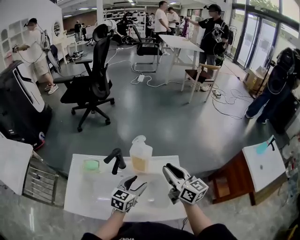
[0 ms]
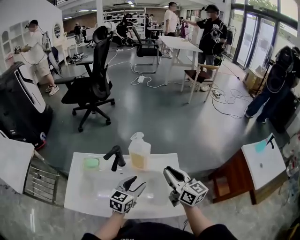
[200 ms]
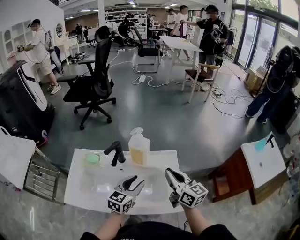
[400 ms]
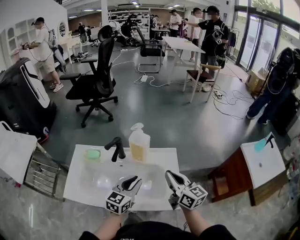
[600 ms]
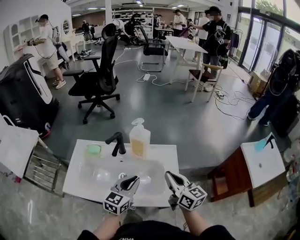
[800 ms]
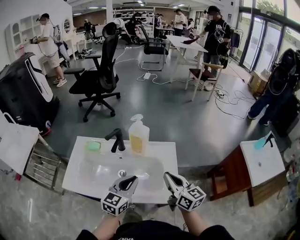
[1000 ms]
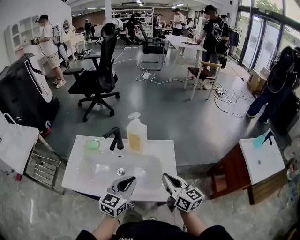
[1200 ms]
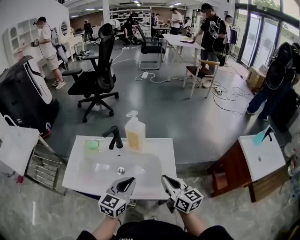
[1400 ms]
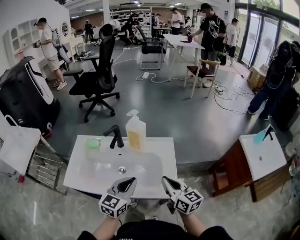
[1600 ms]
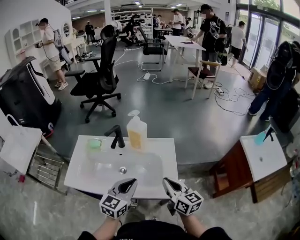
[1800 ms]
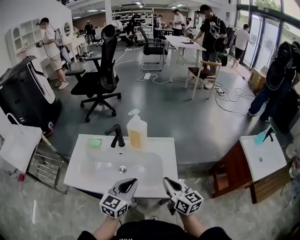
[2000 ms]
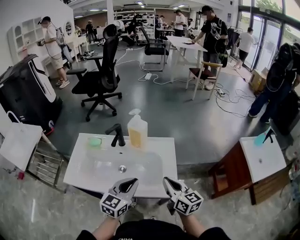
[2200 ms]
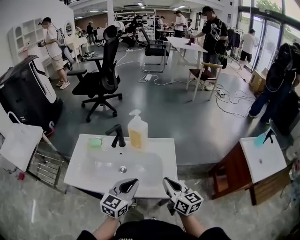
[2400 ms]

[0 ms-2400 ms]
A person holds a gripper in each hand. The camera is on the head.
0 ms to 1200 ms: The left gripper heads backward and upward, covering about 15 cm, and closes its fingers, while the right gripper heads backward, covering about 15 cm, and closes.
1200 ms to 2400 ms: There are only small adjustments of the grippers.

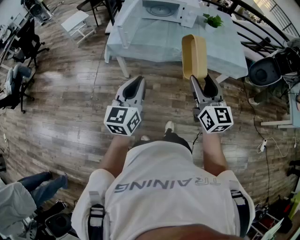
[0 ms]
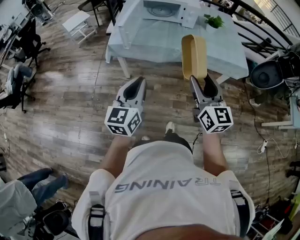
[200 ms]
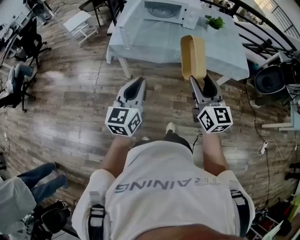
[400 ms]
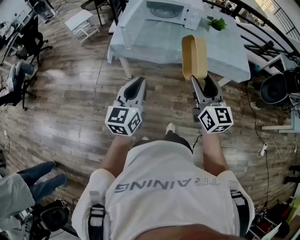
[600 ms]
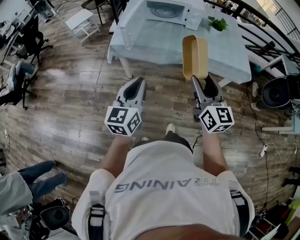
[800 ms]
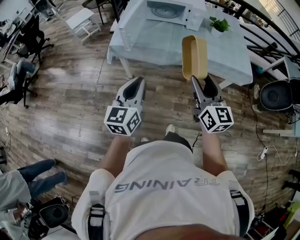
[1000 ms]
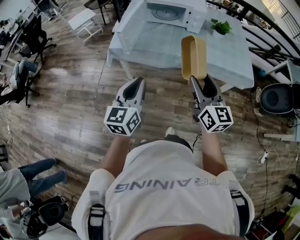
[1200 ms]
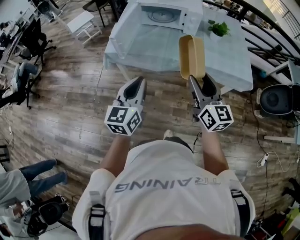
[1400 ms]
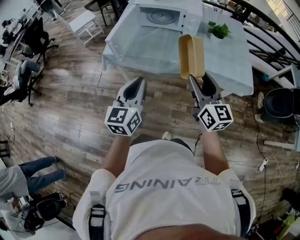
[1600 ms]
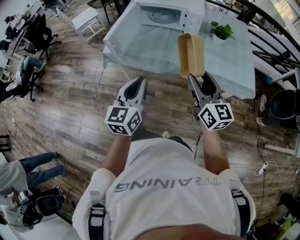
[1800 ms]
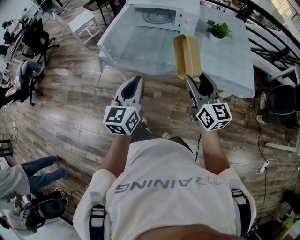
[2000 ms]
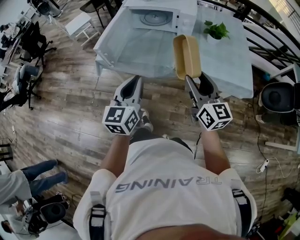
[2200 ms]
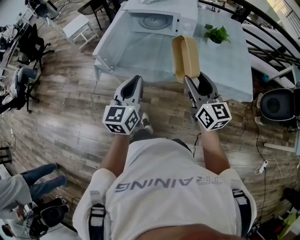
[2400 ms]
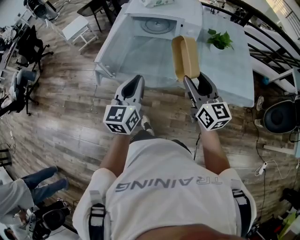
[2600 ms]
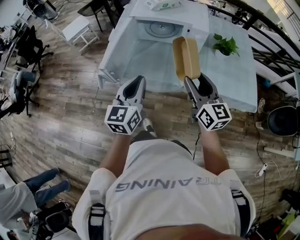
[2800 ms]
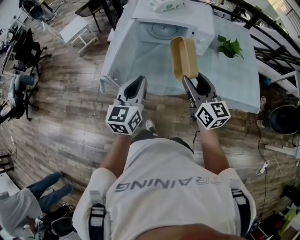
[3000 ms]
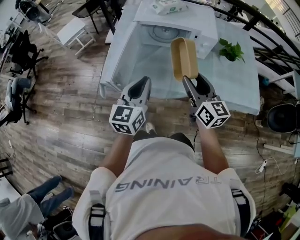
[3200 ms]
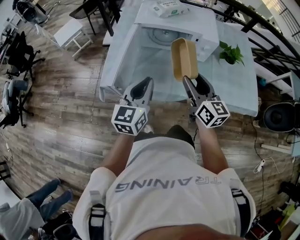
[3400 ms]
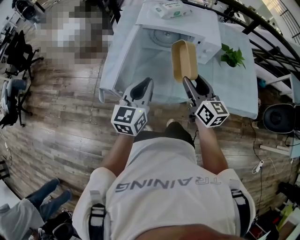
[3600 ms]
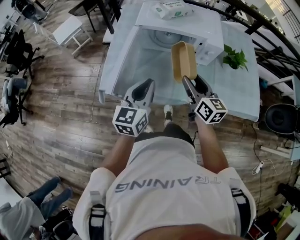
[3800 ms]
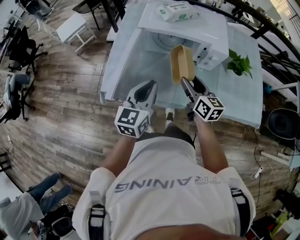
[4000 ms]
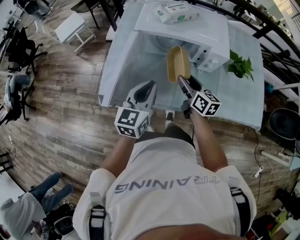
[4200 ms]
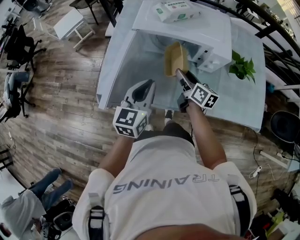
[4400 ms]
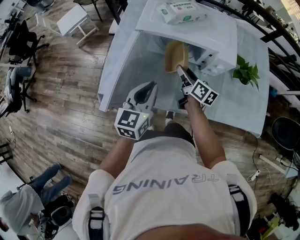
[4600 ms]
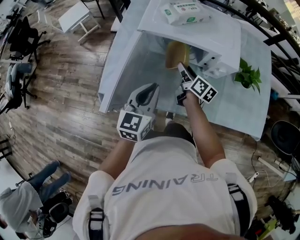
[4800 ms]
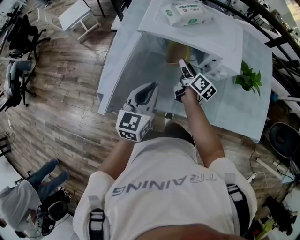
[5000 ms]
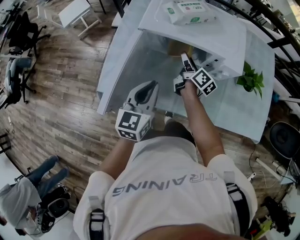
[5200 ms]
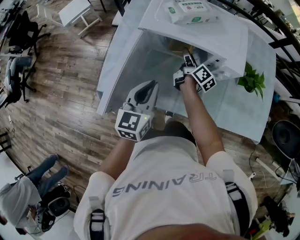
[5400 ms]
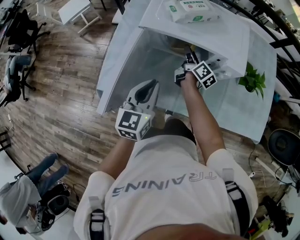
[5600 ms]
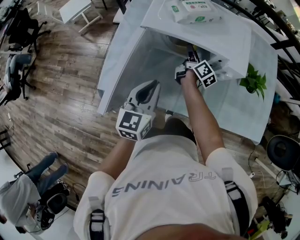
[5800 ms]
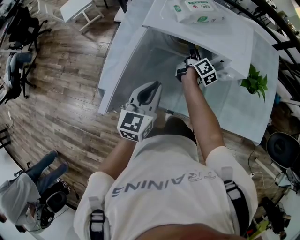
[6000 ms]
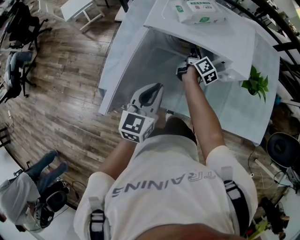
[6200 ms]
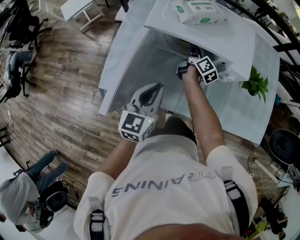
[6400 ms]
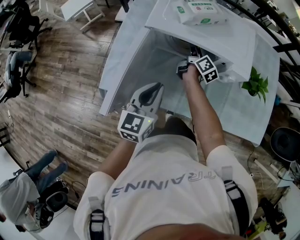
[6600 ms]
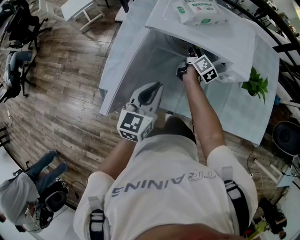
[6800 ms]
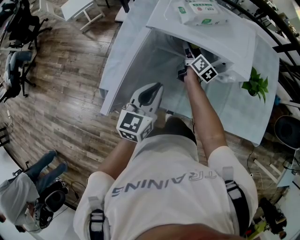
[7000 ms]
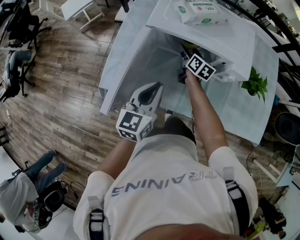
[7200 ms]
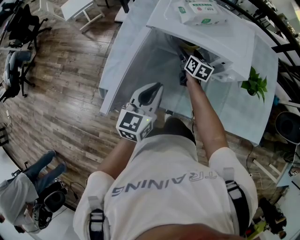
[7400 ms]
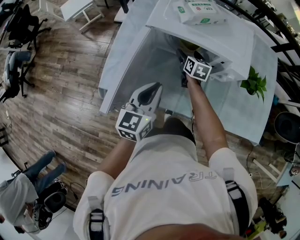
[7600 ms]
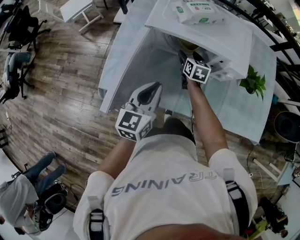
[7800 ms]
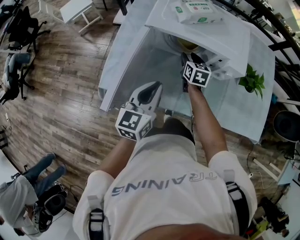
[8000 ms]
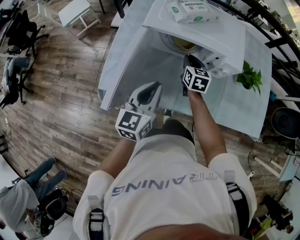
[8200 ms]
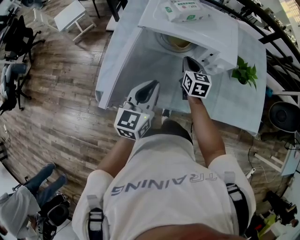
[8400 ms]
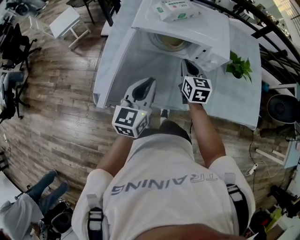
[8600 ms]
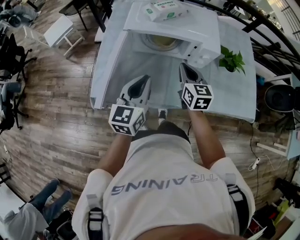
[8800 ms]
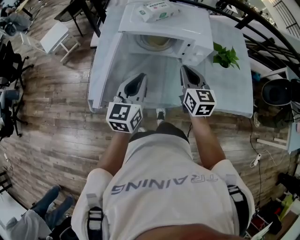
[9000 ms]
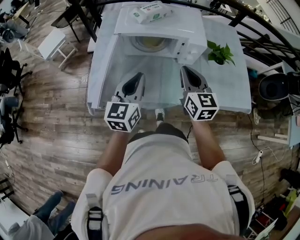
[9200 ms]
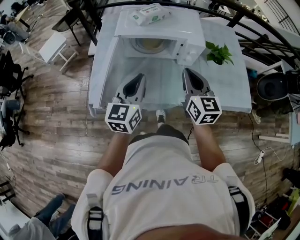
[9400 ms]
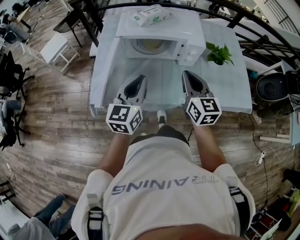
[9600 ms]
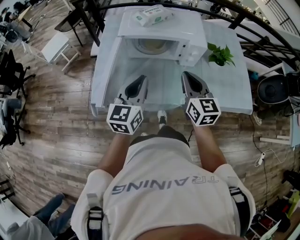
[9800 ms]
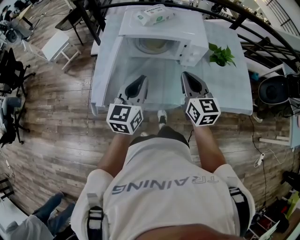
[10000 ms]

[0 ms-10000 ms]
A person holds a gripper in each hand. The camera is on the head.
0 ms to 1400 ms: The two grippers go some 15 cm forward and to the right.
1400 ms to 2800 ms: The grippers both shift forward by some 20 cm.
2800 ms to 4200 ms: The right gripper moves forward and downward, about 25 cm, and swivels some 30 degrees, while the left gripper is displaced forward by about 20 cm.
4200 ms to 5800 ms: The left gripper moves forward, roughly 5 cm. The right gripper goes about 20 cm forward and downward, and turns by some 30 degrees.
5800 ms to 7200 ms: The right gripper swivels some 30 degrees, and opens.
7200 ms to 8600 ms: The left gripper shifts by about 5 cm. The right gripper is displaced backward and upward by about 20 cm, swivels approximately 30 degrees, and closes up.
8600 ms to 10000 ms: The right gripper travels backward and upward by roughly 20 cm. Meanwhile the left gripper shifts by approximately 5 cm.

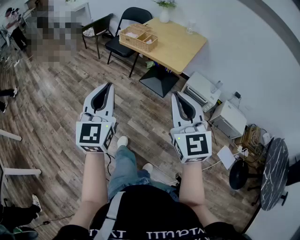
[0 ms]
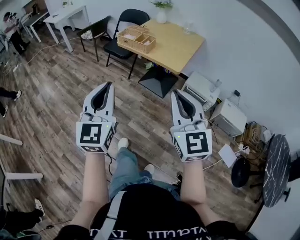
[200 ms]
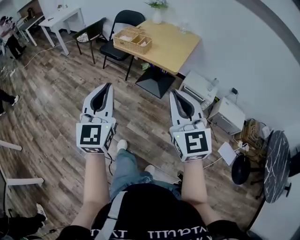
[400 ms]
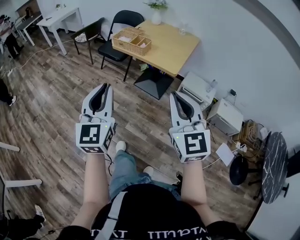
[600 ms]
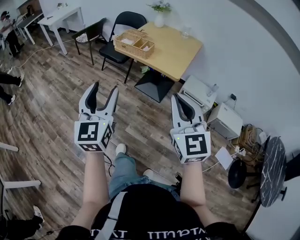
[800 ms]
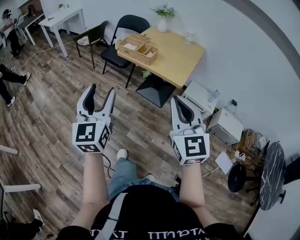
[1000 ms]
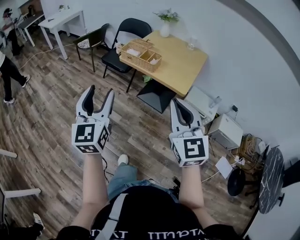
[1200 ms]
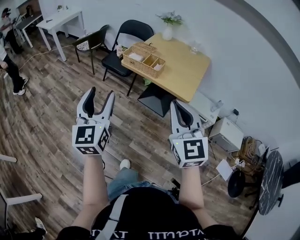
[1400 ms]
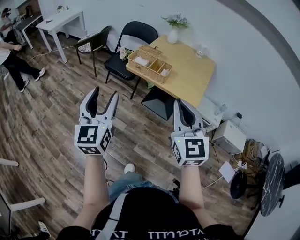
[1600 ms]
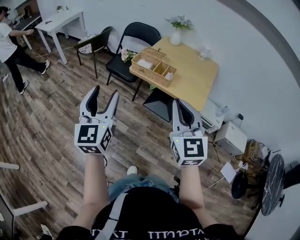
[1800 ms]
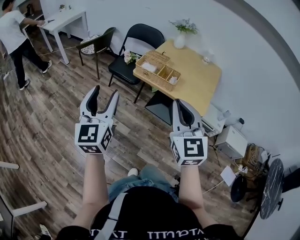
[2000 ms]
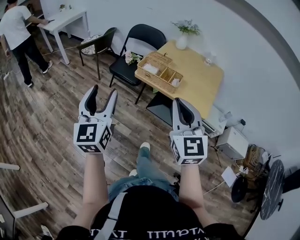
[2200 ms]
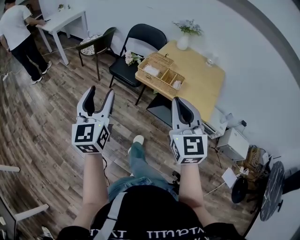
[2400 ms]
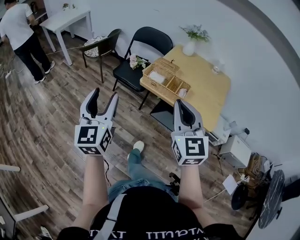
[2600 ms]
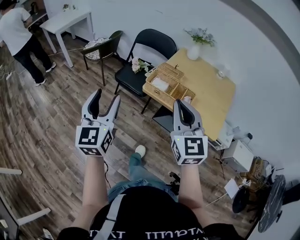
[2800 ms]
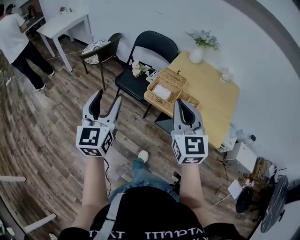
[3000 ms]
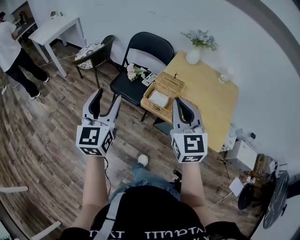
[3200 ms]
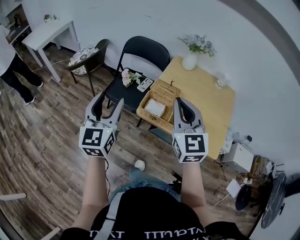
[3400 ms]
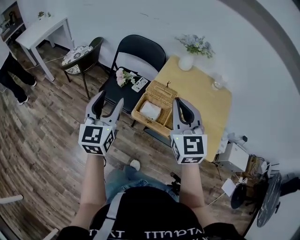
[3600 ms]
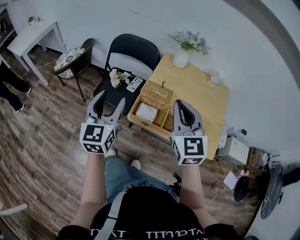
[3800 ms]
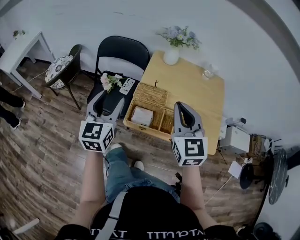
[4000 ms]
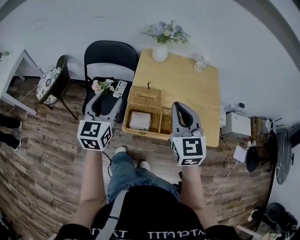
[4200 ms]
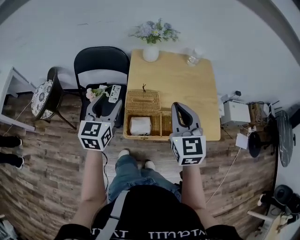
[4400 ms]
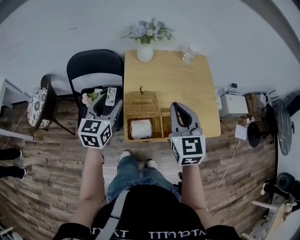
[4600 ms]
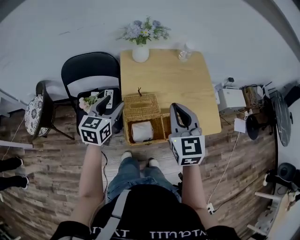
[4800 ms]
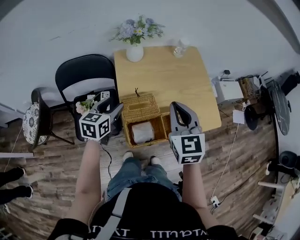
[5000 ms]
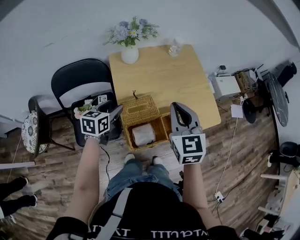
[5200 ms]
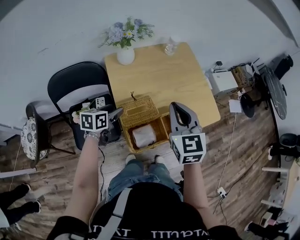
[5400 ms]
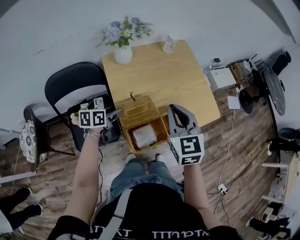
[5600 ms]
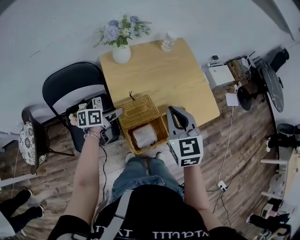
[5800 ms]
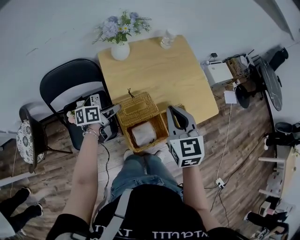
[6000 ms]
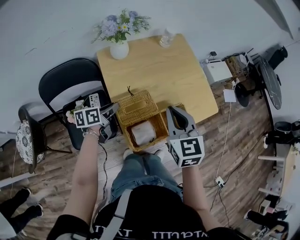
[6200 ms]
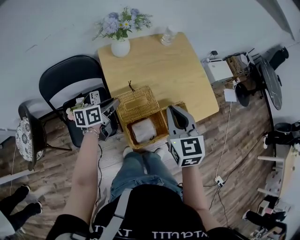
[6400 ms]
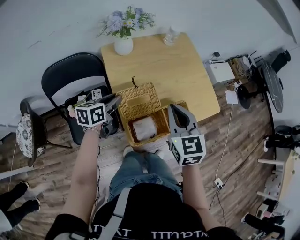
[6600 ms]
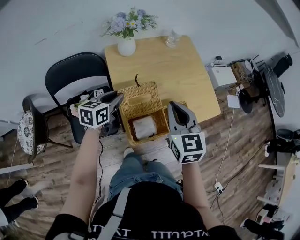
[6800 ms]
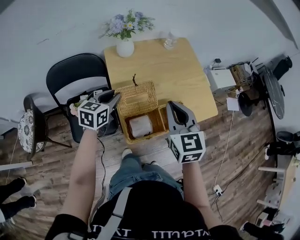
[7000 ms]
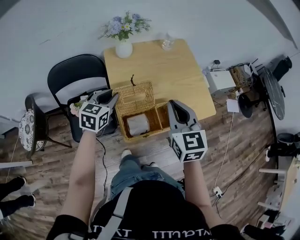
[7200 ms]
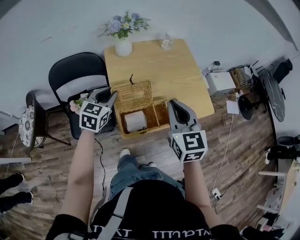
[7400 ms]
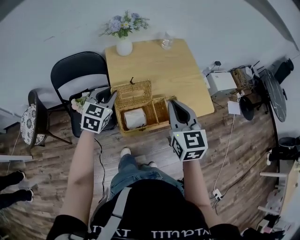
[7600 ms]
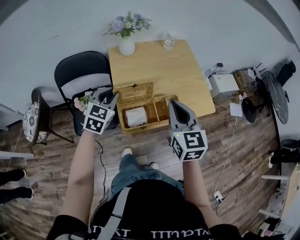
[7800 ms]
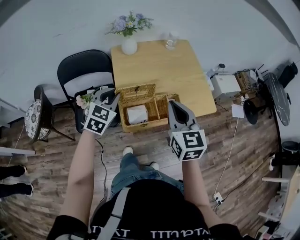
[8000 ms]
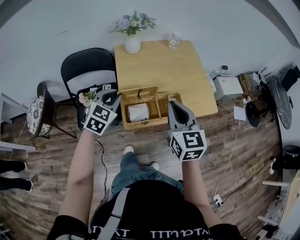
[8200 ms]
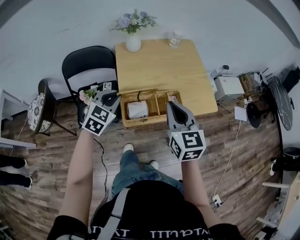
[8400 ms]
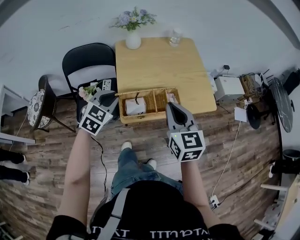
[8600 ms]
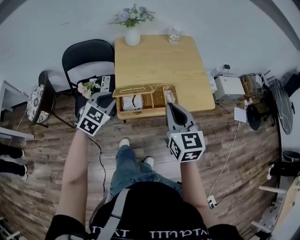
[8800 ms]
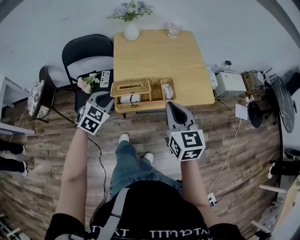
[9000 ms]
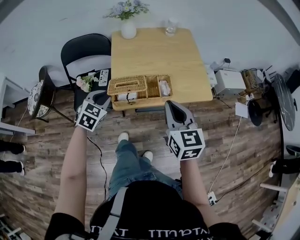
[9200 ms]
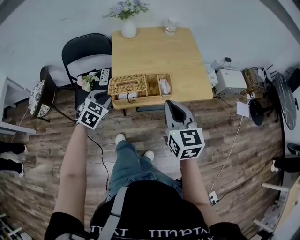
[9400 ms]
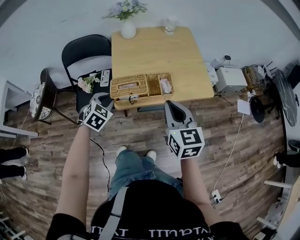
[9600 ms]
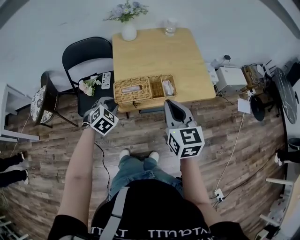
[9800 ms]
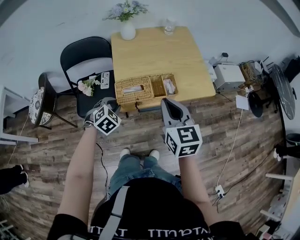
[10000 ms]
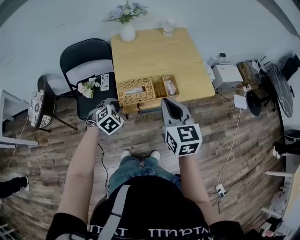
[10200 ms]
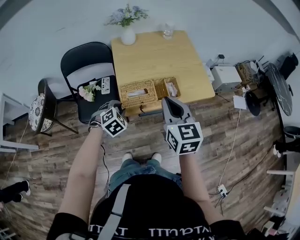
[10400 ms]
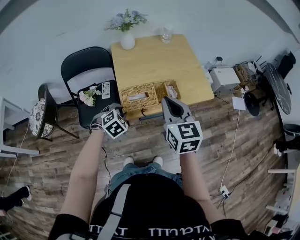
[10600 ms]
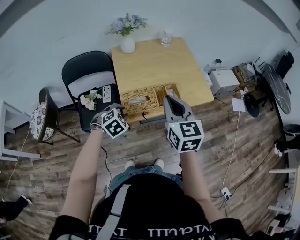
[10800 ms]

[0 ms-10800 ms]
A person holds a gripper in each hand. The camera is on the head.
0 ms to 1600 ms: Both grippers travel together forward and to the left, approximately 30 cm. The left gripper opens up.
1600 ms to 3000 ms: The grippers both shift forward by some 30 cm.
3000 ms to 4600 ms: The right gripper changes place by some 25 cm, and swivels some 40 degrees. Meanwhile the left gripper ends up about 40 cm from where it was, and swivels about 50 degrees.
4600 ms to 6200 ms: The right gripper heads downward, covering about 5 cm, while the left gripper heads downward, covering some 15 cm, rotates roughly 60 degrees, and closes.
6200 ms to 7800 ms: The right gripper goes some 10 cm backward and to the right. The left gripper travels upward and backward by roughly 15 cm, and twists roughly 60 degrees clockwise, seen from behind.
7800 ms to 9200 ms: The right gripper shifts about 10 cm backward and to the right; the left gripper shifts roughly 15 cm backward and downward.
9200 ms to 10800 ms: The right gripper travels to the left by roughly 10 cm, while the left gripper changes its angle by roughly 30 degrees.
